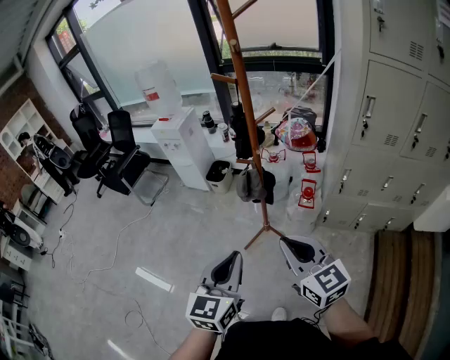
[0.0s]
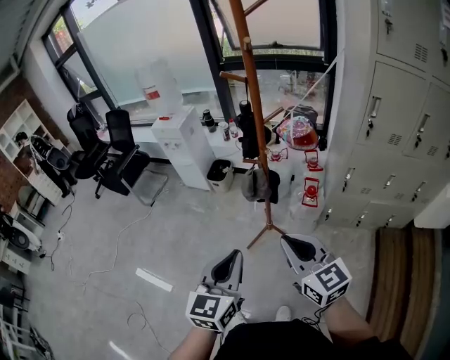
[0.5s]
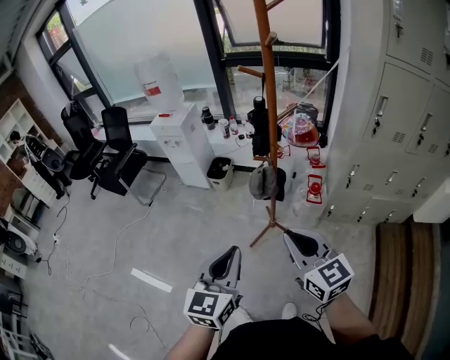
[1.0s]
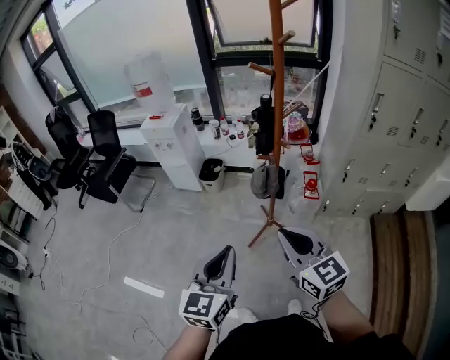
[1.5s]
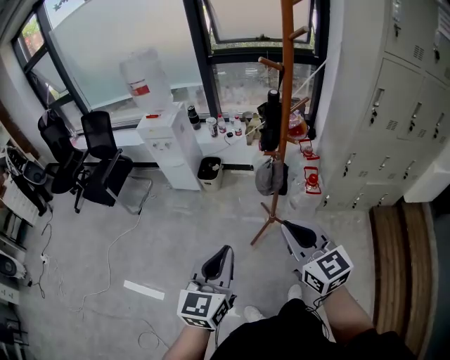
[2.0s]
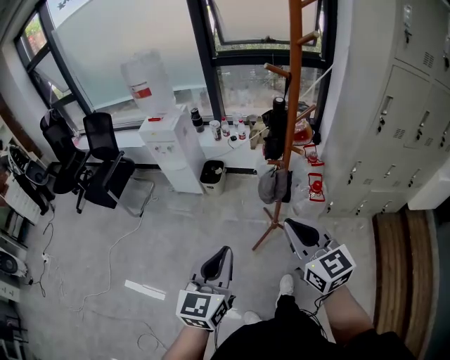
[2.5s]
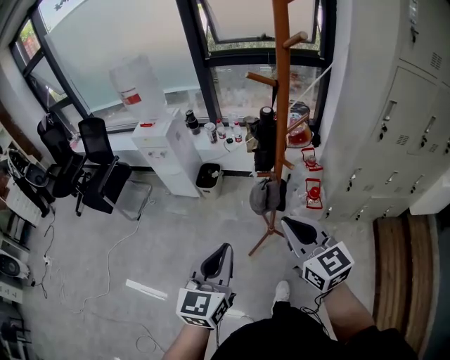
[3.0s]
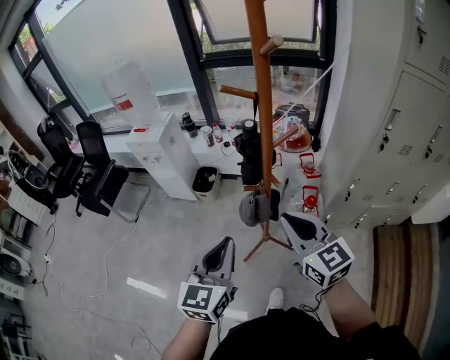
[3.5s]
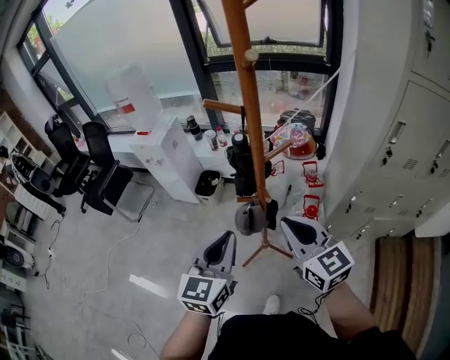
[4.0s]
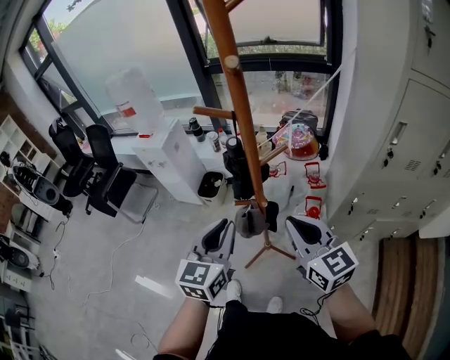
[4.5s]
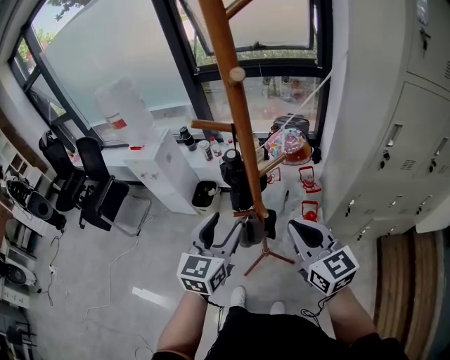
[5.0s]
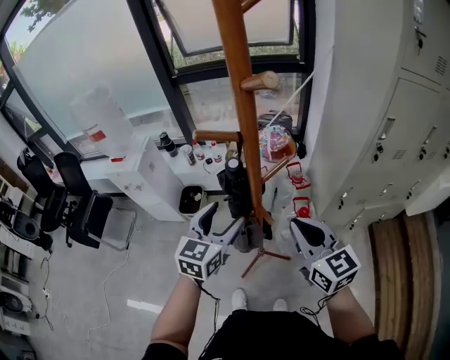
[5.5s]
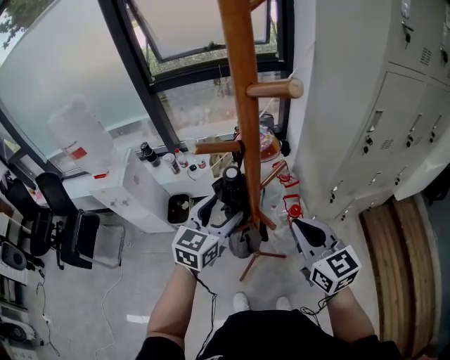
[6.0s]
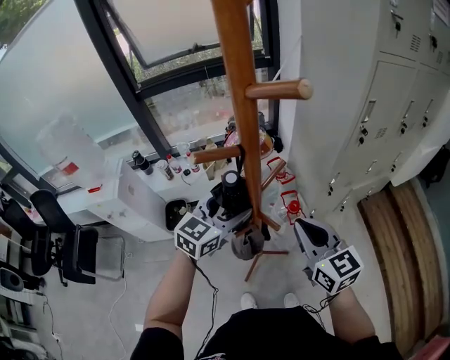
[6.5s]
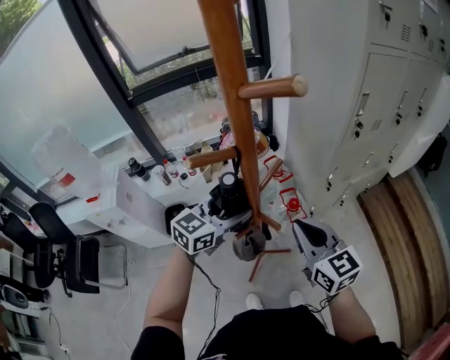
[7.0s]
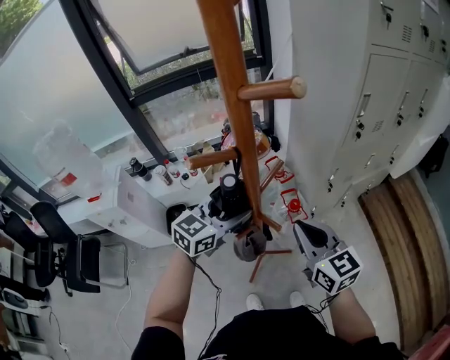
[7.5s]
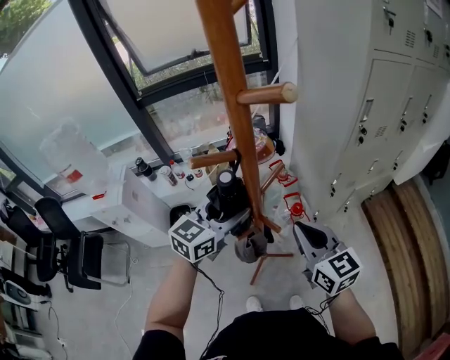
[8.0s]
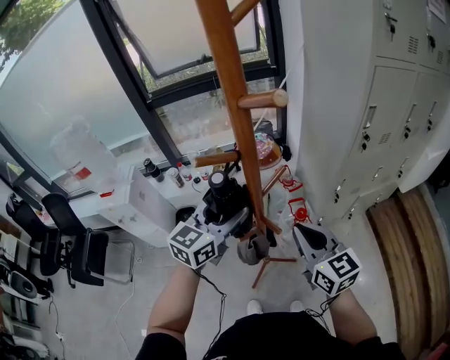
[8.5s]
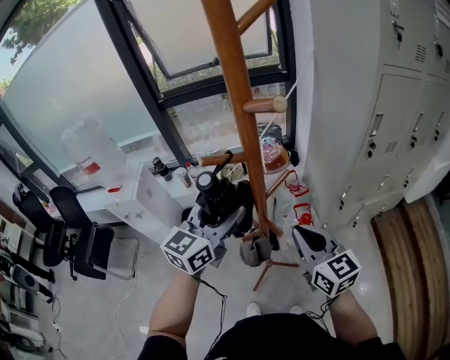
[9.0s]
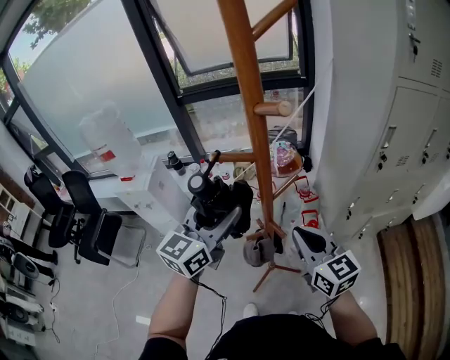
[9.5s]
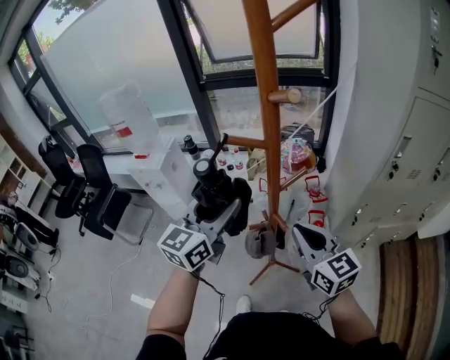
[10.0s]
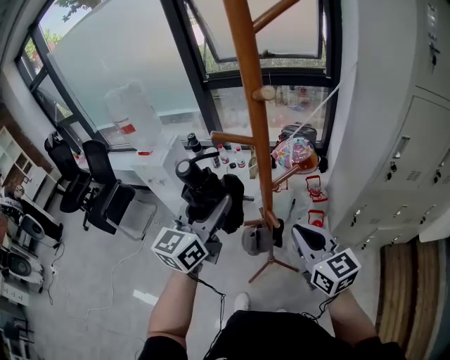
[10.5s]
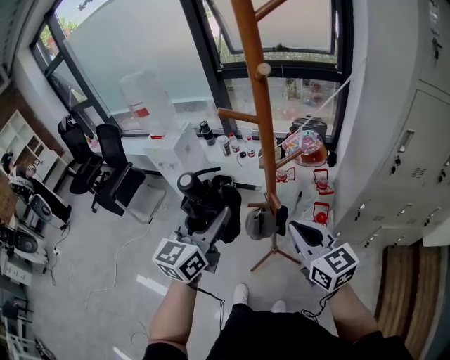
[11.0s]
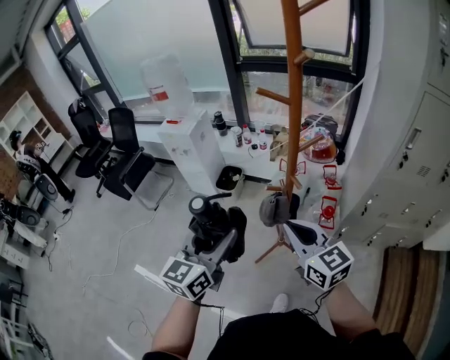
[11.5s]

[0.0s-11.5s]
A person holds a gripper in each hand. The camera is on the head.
0.0s to 2.0s: The two grippers go about 20 cm to the left.
2.0s to 4.0s: The grippers both shift forward and to the right by approximately 25 cm.
4.0s to 6.0s: The left gripper moves about 20 cm, swivels approximately 30 degrees, and opens up; the right gripper changes place by some 5 cm, and changes its angle by about 20 degrees.
6.0s to 7.5s: The left gripper turns by about 30 degrees.
7.5s to 9.5s: The left gripper heads upward, backward and to the left, covering approximately 15 cm, and rotates roughly 30 degrees.
9.5s to 11.5s: The left gripper travels backward by some 25 cm, and rotates approximately 30 degrees; the right gripper shifts some 15 cm backward and to the left, and changes its angle by approximately 20 degrees.

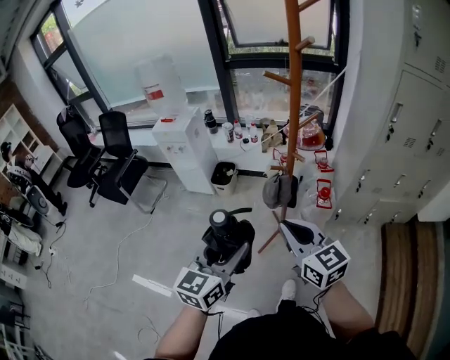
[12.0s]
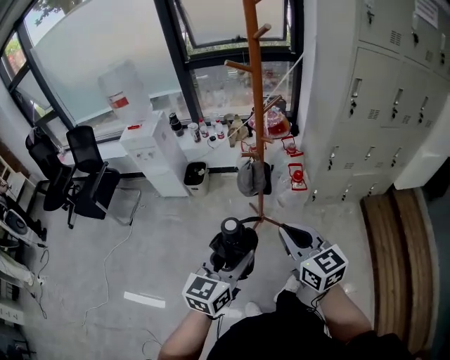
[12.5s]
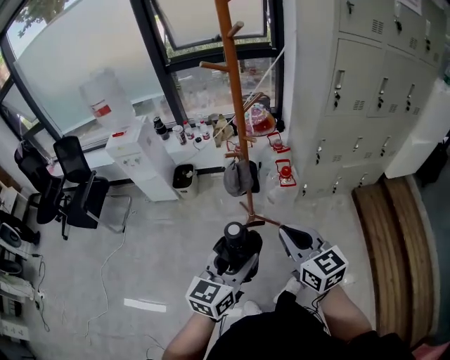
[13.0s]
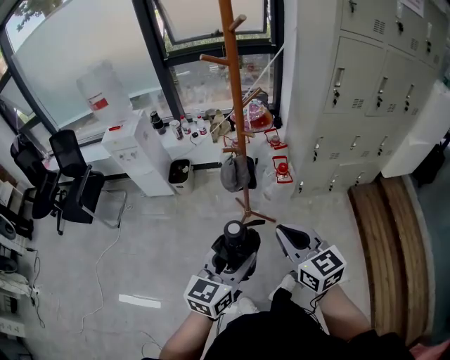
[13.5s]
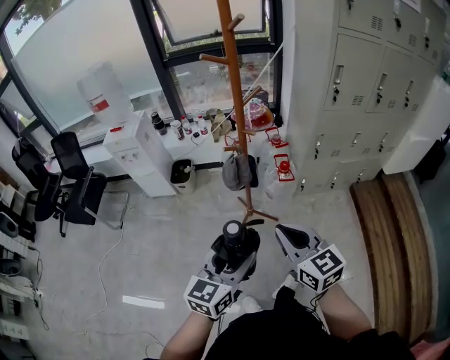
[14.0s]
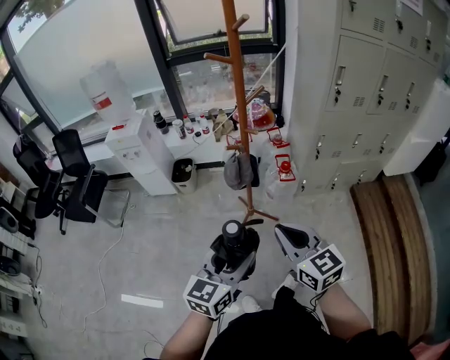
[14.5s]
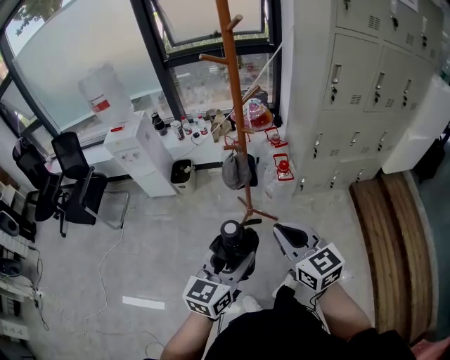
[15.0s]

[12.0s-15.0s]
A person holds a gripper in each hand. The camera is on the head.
12.0s to 13.5s: The right gripper moves backward and to the right, roughly 10 cm, while the left gripper travels to the right and backward by about 10 cm.
13.5s to 15.0s: The grippers stay close to where they were, moving slightly.

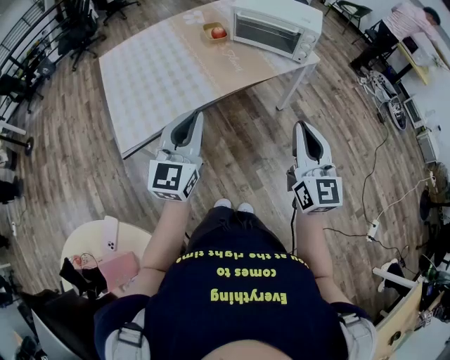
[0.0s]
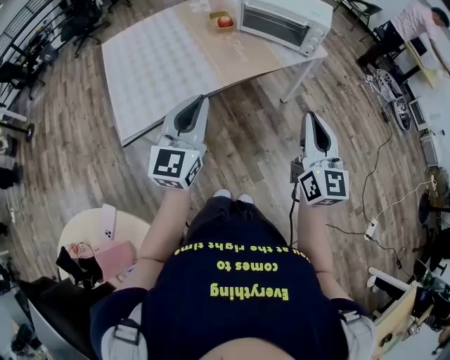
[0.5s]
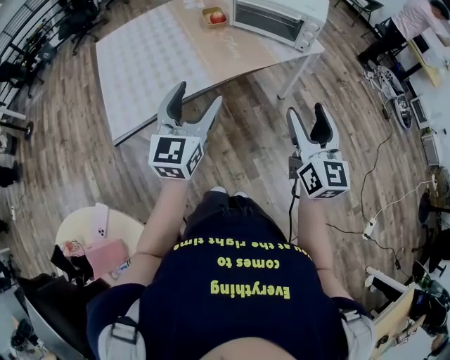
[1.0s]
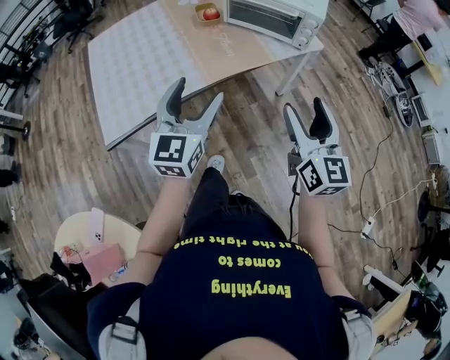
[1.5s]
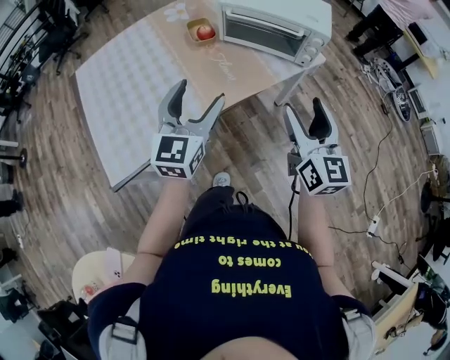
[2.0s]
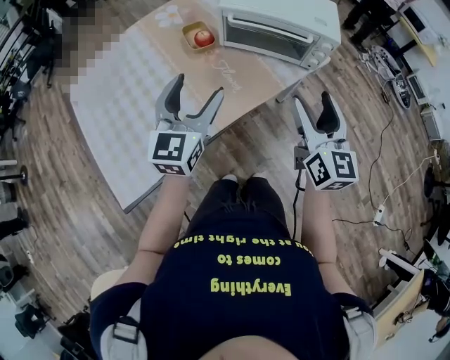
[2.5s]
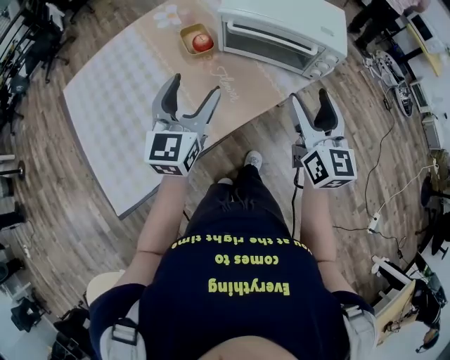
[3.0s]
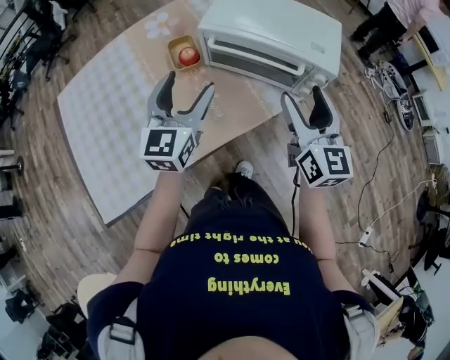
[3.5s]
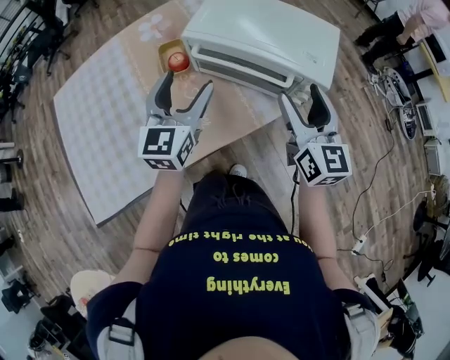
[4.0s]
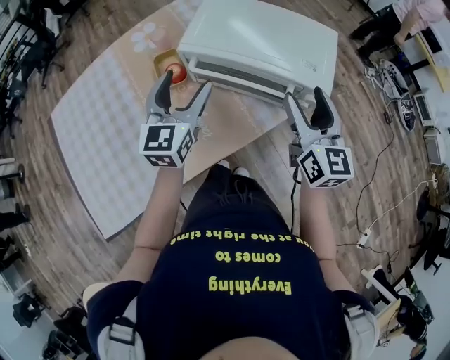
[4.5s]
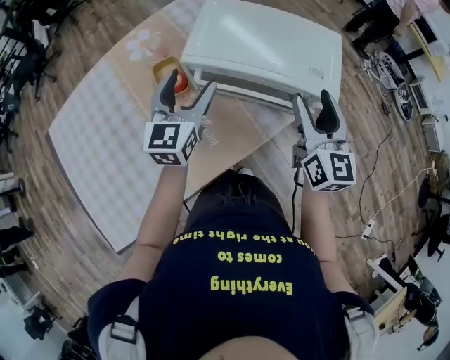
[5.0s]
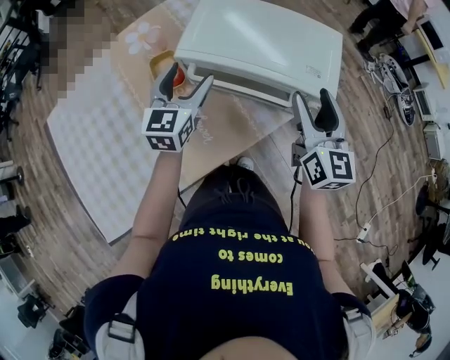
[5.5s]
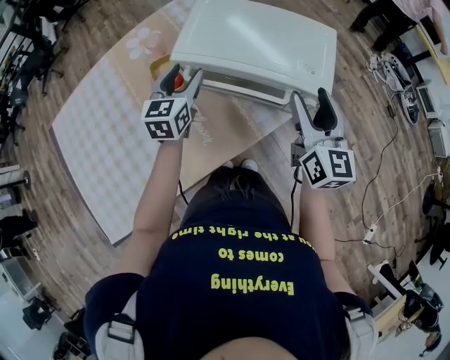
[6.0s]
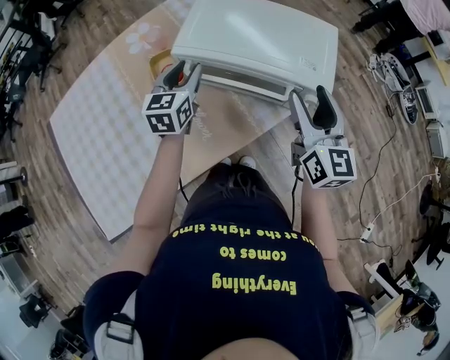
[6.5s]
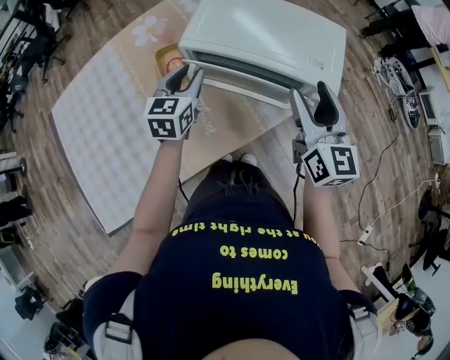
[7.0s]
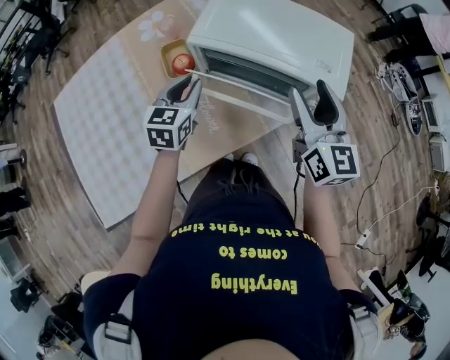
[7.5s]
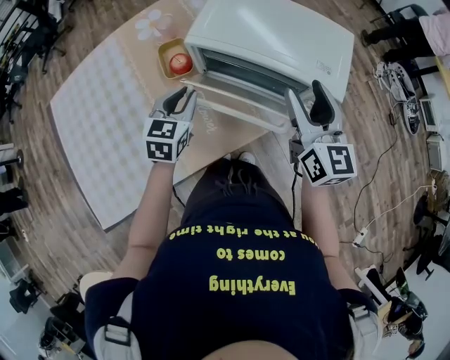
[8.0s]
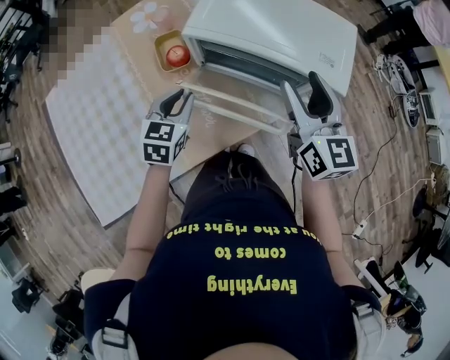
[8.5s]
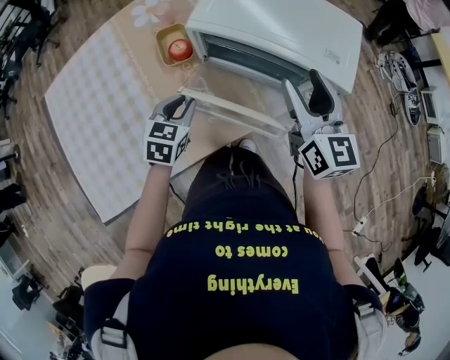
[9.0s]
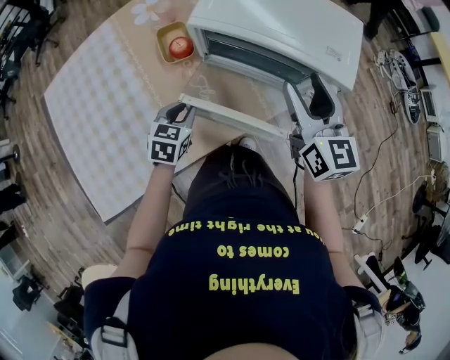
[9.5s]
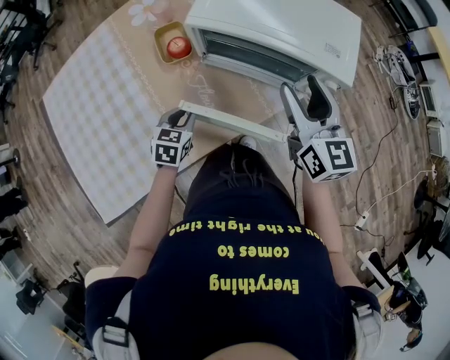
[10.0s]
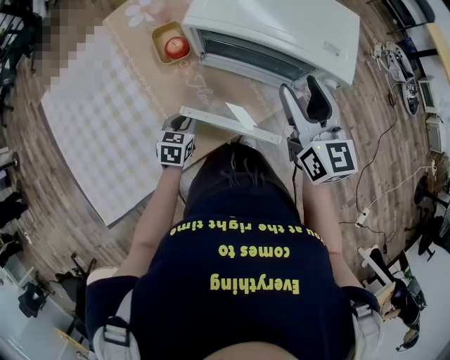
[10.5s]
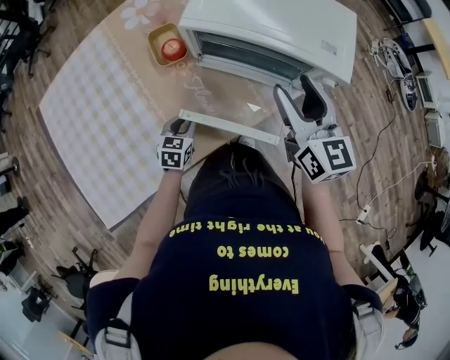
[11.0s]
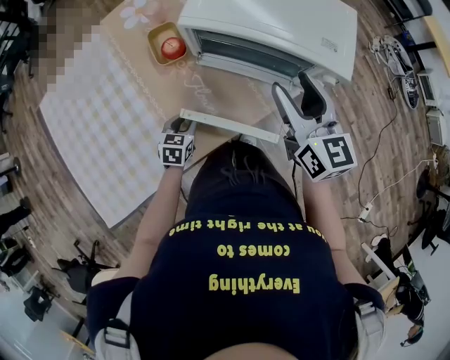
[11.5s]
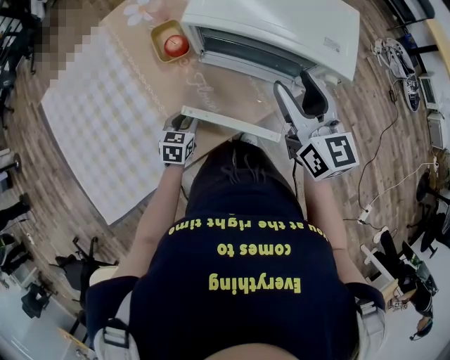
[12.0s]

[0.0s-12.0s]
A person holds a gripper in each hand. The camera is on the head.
0.0s to 2.0s: Both grippers travel together forward, approximately 20 cm. The left gripper opens its fingers; the right gripper opens.
2.0s to 4.0s: The two grippers go some 25 cm forward.
4.0s to 6.0s: The left gripper is displaced forward and downward by roughly 15 cm, while the right gripper moves approximately 5 cm.
6.0s to 8.0s: The left gripper heads backward, covering roughly 10 cm, and closes. The right gripper heads to the left, covering some 5 cm.
8.0s to 10.0s: The left gripper shifts some 15 cm downward and backward.
10.0s to 12.0s: The left gripper goes roughly 5 cm downward.
